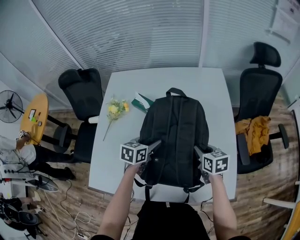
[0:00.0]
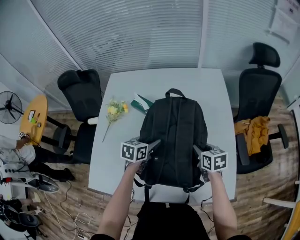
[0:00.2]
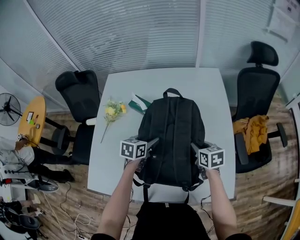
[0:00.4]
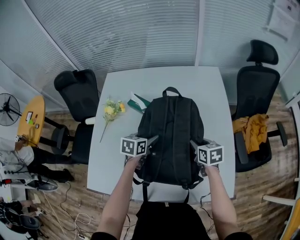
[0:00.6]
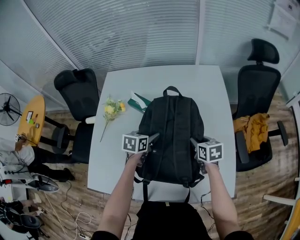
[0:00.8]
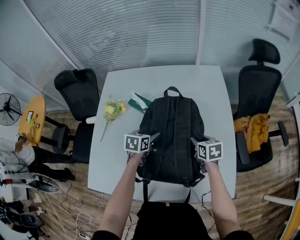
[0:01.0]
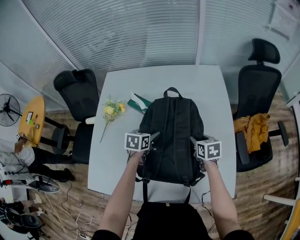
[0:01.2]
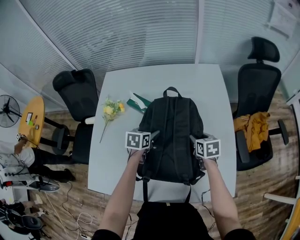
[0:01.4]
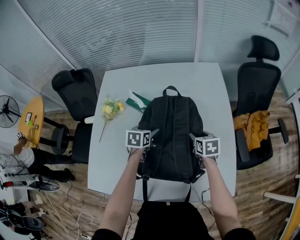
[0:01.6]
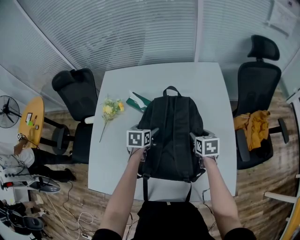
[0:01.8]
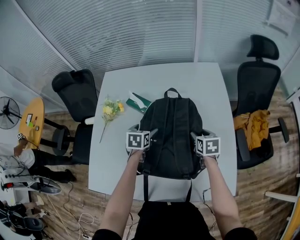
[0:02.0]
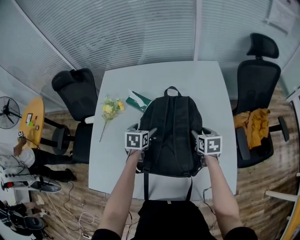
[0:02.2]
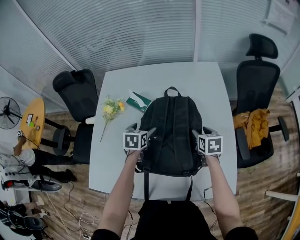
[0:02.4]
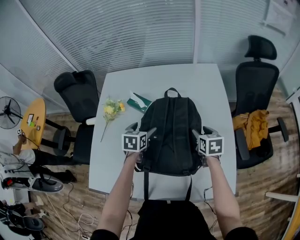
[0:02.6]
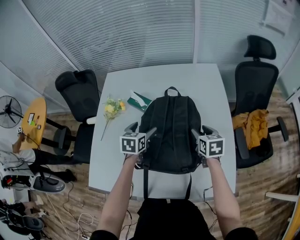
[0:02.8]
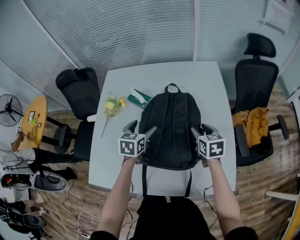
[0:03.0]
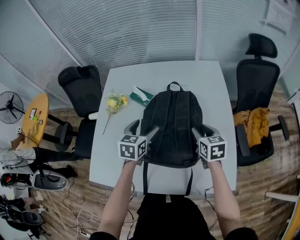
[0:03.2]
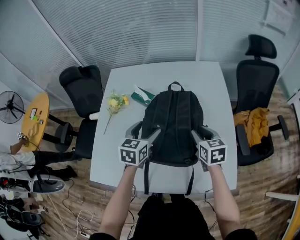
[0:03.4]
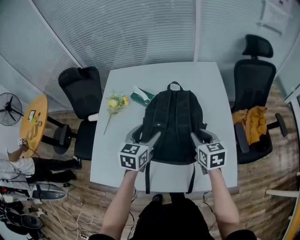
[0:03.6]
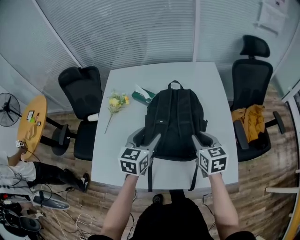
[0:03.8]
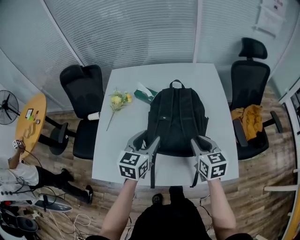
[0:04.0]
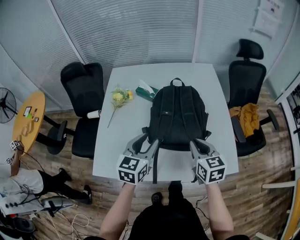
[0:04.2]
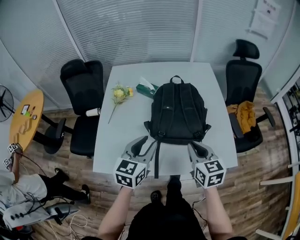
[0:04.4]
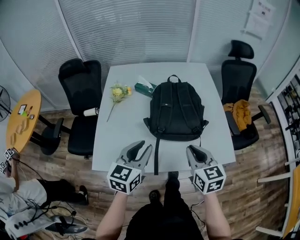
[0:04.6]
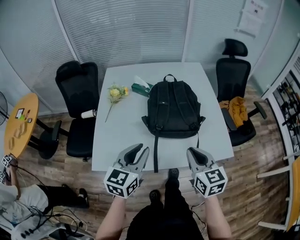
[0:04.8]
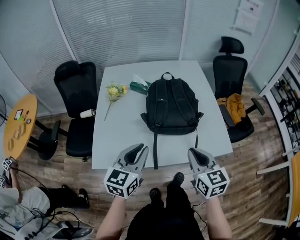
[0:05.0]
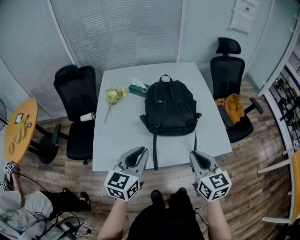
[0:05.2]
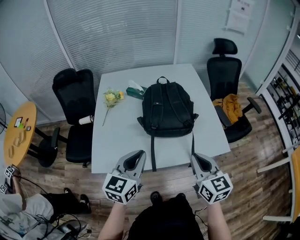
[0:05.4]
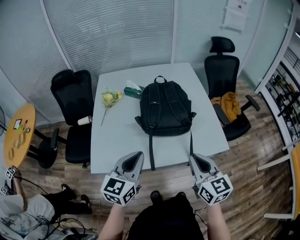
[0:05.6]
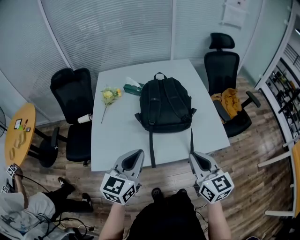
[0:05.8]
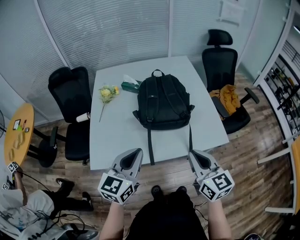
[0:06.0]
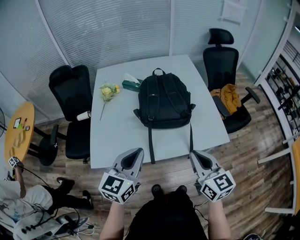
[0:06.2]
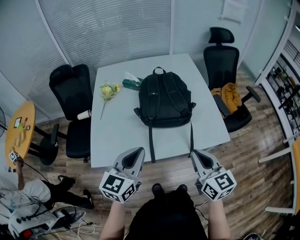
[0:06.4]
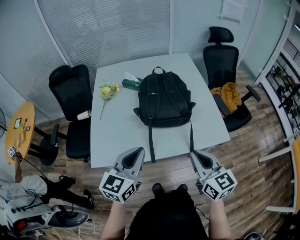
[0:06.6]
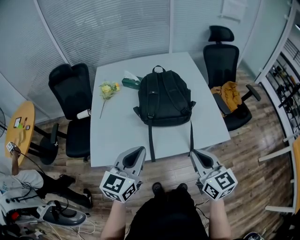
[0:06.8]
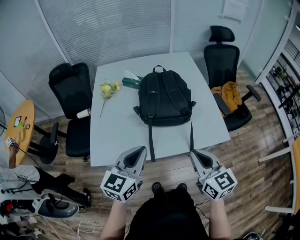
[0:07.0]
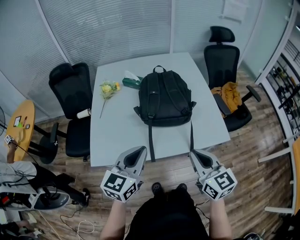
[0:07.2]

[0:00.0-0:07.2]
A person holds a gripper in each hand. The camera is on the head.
0:00.0 to 0:01.4: The left gripper goes about 10 cm forward and downward. Meanwhile the right gripper goes roughly 5 cm forward.
0:01.4 to 0:02.8: Both grippers move upward, about 5 cm.
0:02.8 to 0:04.4: The left gripper shifts about 30 cm backward and upward, changes its angle by some 20 degrees, and closes its fingers, while the right gripper goes some 30 cm backward, to the left and upward, and closes its fingers.
0:04.4 to 0:05.8: Both grippers move backward, roughly 15 cm. The left gripper closes.
0:05.8 to 0:07.2: The grippers make only small movements.

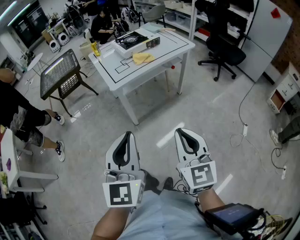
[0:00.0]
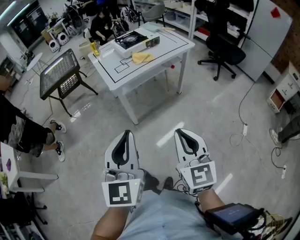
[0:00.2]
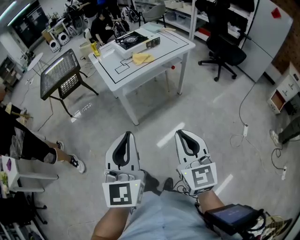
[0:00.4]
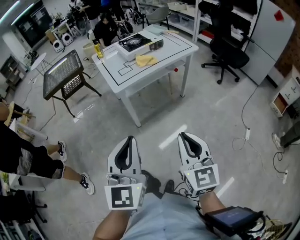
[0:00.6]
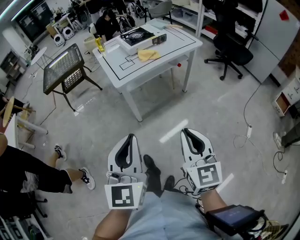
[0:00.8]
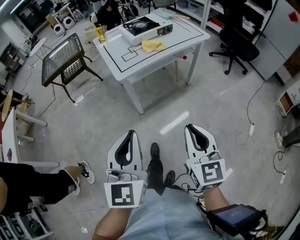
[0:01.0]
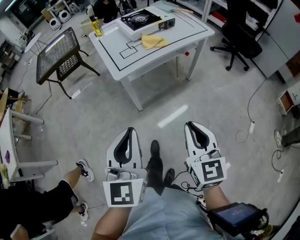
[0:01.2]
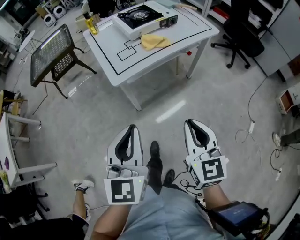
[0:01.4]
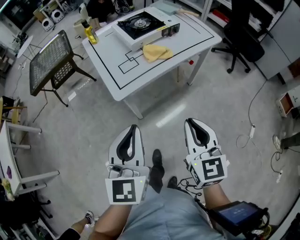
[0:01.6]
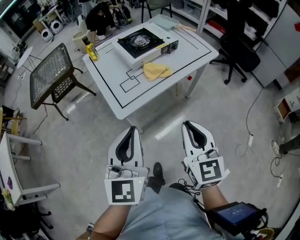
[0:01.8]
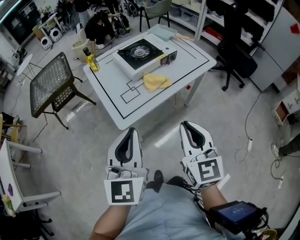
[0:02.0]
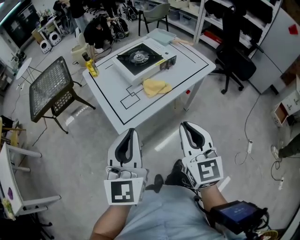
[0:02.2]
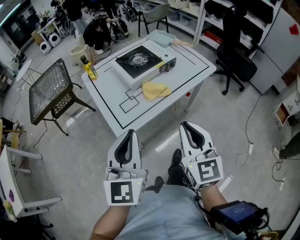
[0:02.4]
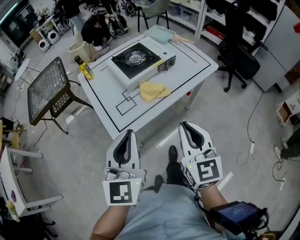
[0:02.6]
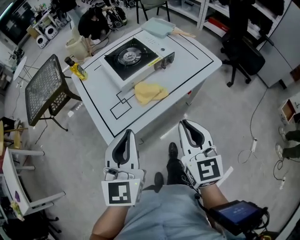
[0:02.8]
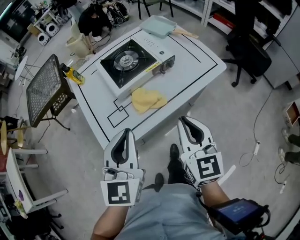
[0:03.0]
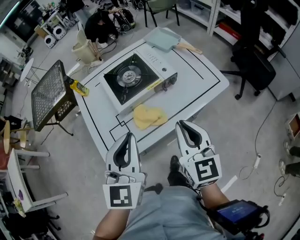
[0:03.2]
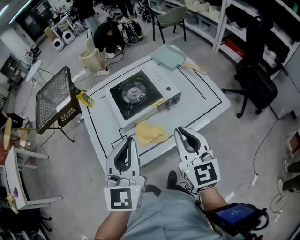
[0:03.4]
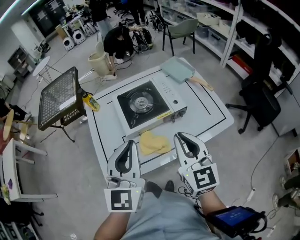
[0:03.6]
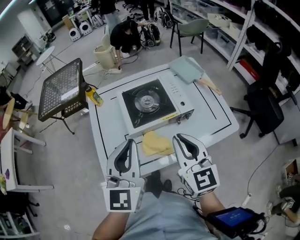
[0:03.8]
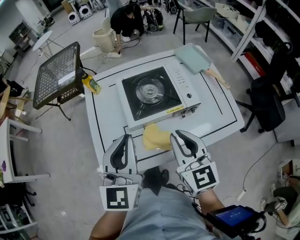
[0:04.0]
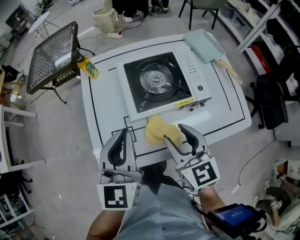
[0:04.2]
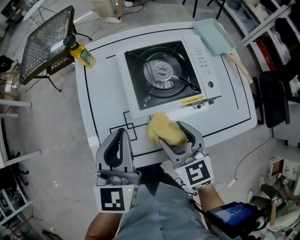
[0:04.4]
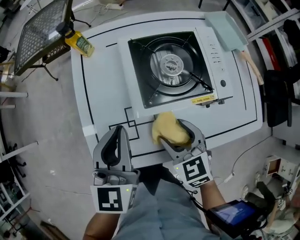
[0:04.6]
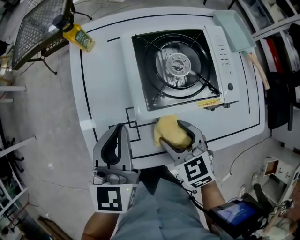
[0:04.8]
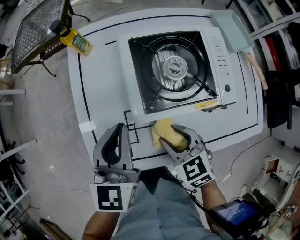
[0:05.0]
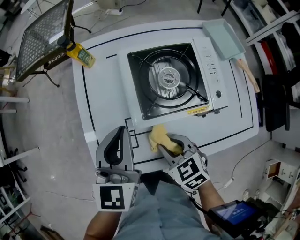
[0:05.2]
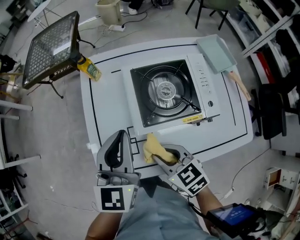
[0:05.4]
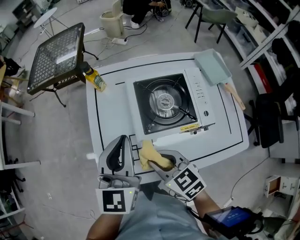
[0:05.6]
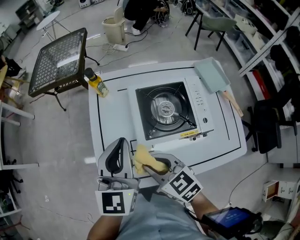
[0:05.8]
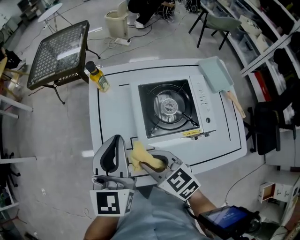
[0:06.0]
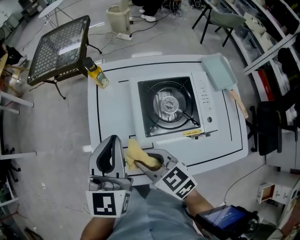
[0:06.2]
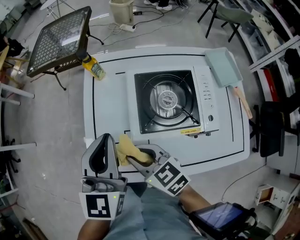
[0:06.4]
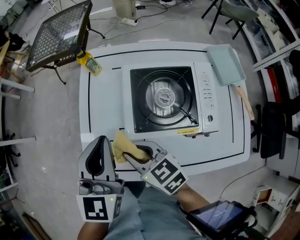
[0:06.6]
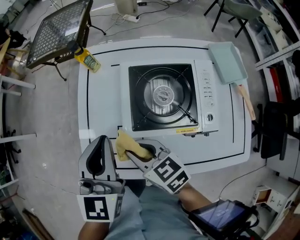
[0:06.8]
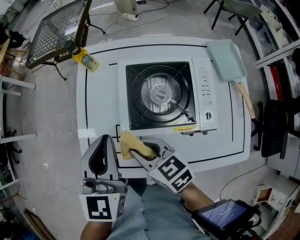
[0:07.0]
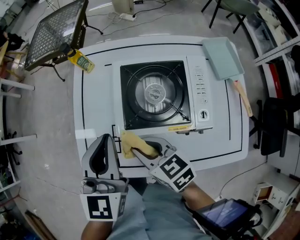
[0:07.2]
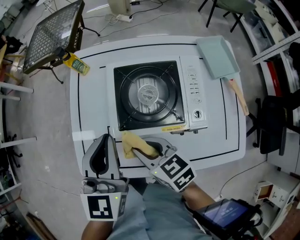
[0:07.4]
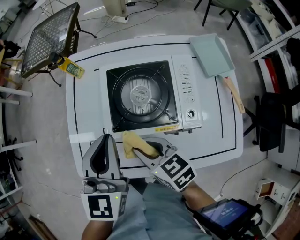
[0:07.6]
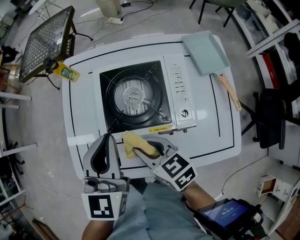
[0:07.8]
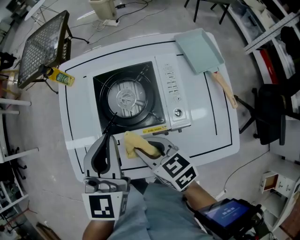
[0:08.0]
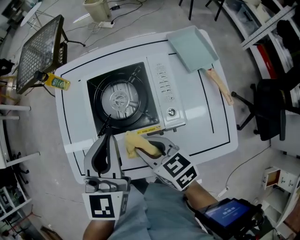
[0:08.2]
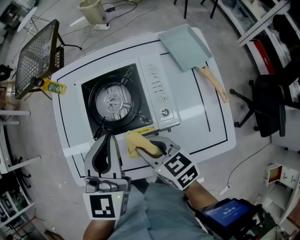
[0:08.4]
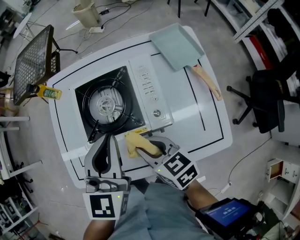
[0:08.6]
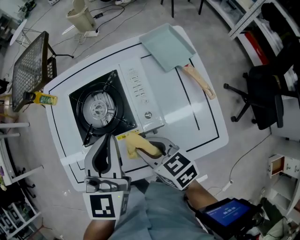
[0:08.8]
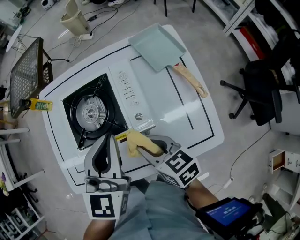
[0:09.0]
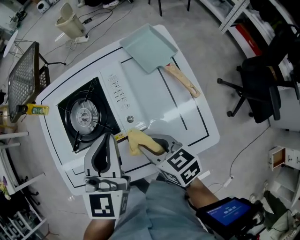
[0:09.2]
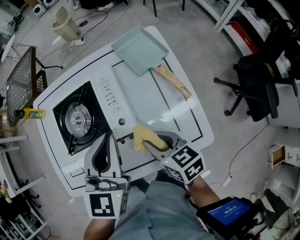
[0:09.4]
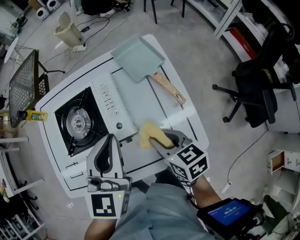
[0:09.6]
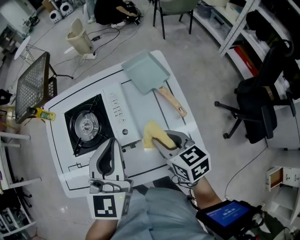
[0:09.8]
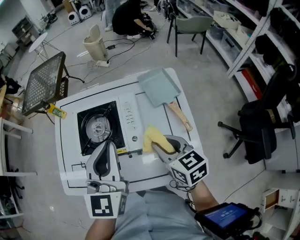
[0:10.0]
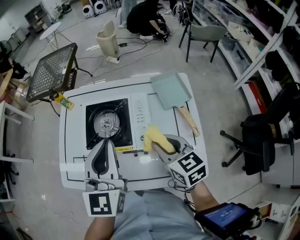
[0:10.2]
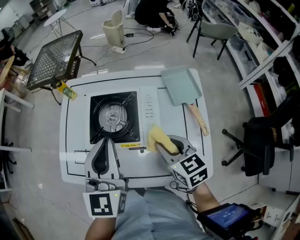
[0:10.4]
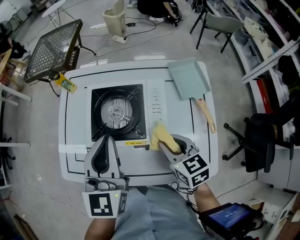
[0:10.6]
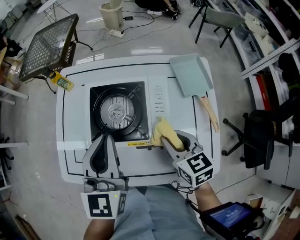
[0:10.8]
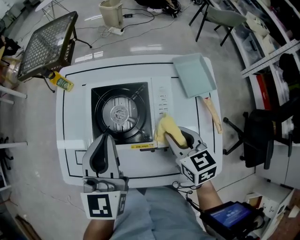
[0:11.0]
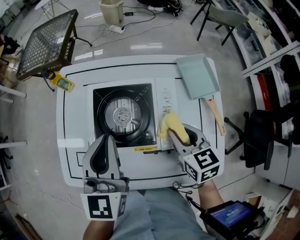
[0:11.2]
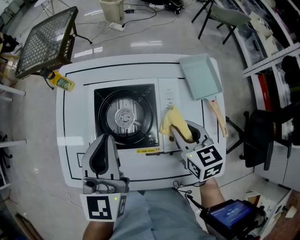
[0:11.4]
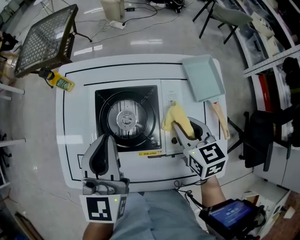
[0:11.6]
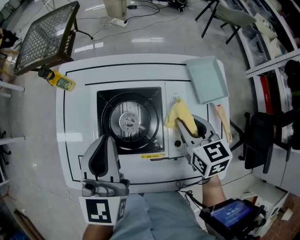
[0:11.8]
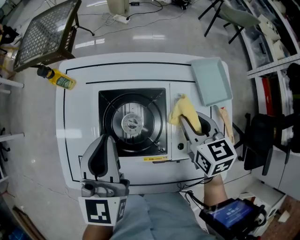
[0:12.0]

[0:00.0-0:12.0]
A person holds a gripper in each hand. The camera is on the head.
0:00.0 to 0:01.6: Both grippers move forward, some 30 cm.
0:01.6 to 0:03.0: Both grippers travel together forward, some 30 cm.
0:03.0 to 0:04.4: The left gripper changes place by about 20 cm, and swivels approximately 20 degrees. Meanwhile the right gripper shifts by roughly 25 cm, rotates approximately 40 degrees, and opens.
0:04.4 to 0:06.0: The left gripper shifts about 10 cm upward and forward. Meanwhile the right gripper goes about 10 cm to the left, travels downward and back again, some 10 cm each way, changes its angle by about 30 degrees, and closes its fingers.
0:06.0 to 0:07.6: The right gripper goes approximately 10 cm to the right. Meanwhile the left gripper travels to the right and backward by roughly 15 cm.
0:07.6 to 0:09.0: Both grippers travel together to the right, about 15 cm.
0:09.0 to 0:10.4: The right gripper goes approximately 10 cm upward and to the right; the left gripper shifts about 10 cm upward and to the left, and turns by some 20 degrees.
0:10.4 to 0:12.0: The left gripper is displaced forward, to the left and downward by about 15 cm; the right gripper travels forward by about 15 cm.

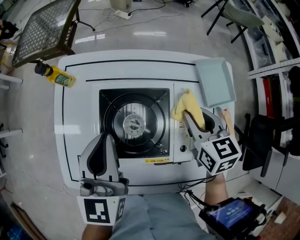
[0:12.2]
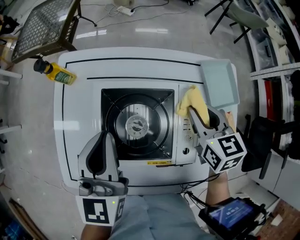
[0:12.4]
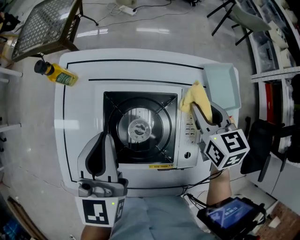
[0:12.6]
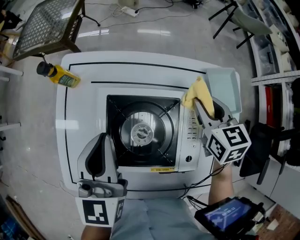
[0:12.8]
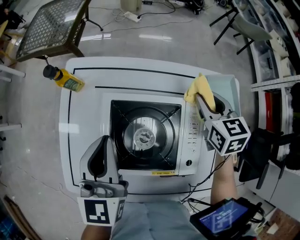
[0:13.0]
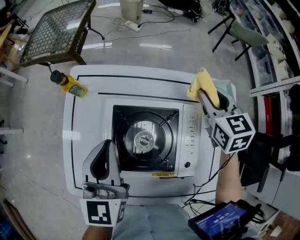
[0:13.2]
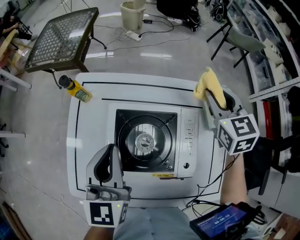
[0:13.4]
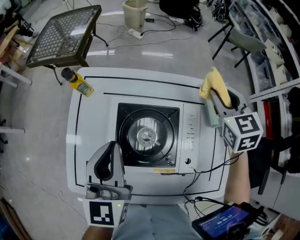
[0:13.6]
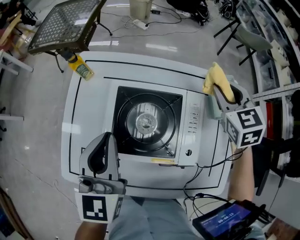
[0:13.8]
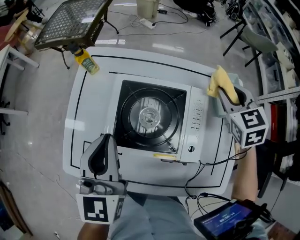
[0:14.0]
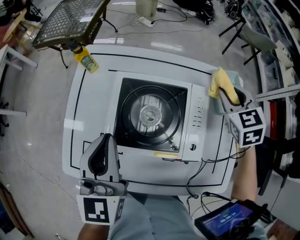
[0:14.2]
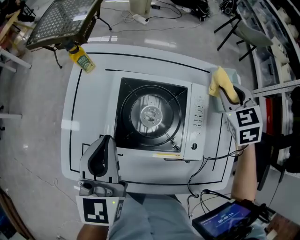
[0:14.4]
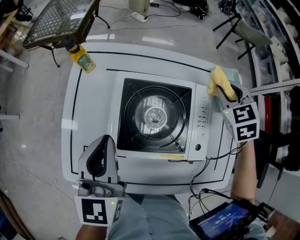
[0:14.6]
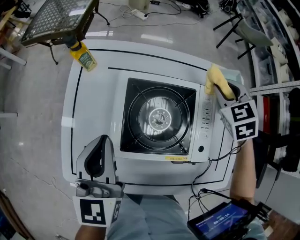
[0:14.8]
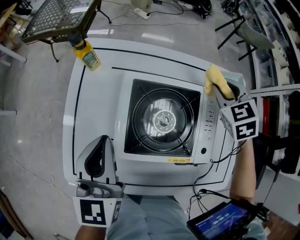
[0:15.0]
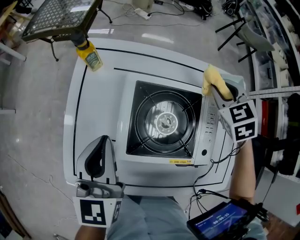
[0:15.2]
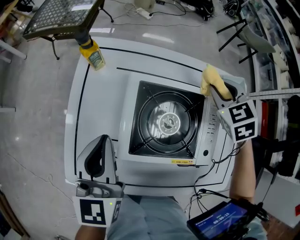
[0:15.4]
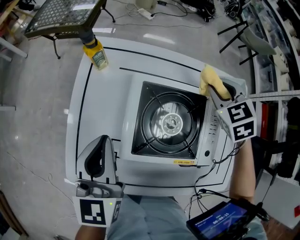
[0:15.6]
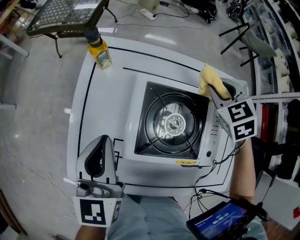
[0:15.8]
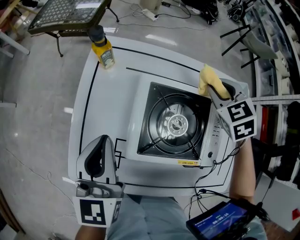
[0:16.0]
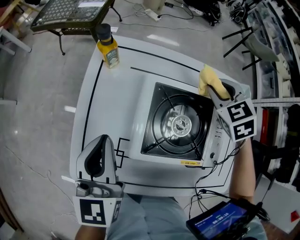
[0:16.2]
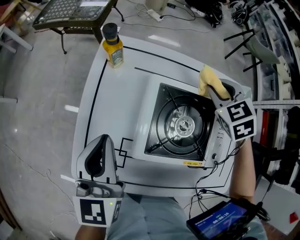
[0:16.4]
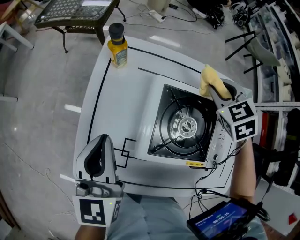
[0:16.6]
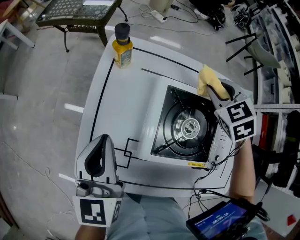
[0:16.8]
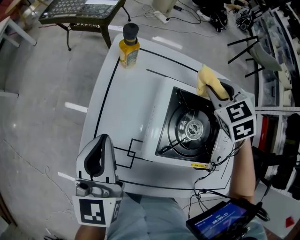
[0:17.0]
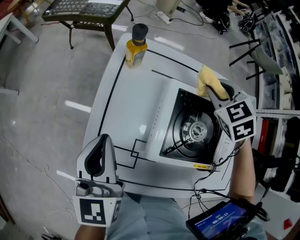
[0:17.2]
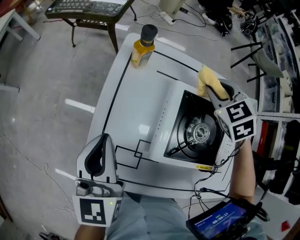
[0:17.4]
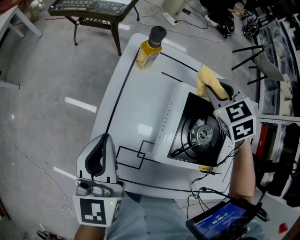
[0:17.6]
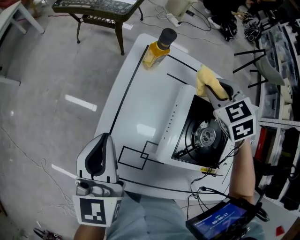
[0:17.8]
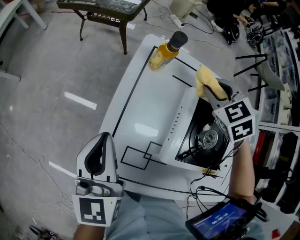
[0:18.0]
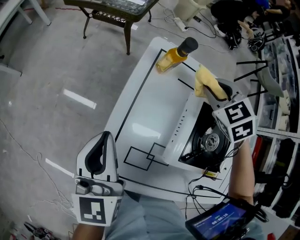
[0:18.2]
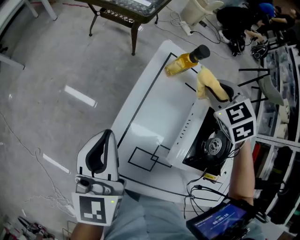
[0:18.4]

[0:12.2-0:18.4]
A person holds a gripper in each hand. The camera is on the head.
0:12.2 to 0:13.8: The right gripper is displaced forward and upward by approximately 10 cm, and turns by about 30 degrees; the left gripper changes place by roughly 5 cm.
0:13.8 to 0:15.4: The left gripper travels to the left by approximately 10 cm; the right gripper heads to the left and downward, covering some 10 cm.
0:15.4 to 0:16.8: Both grippers travel together to the left, approximately 10 cm.
0:16.8 to 0:18.4: Both grippers travel together to the left, about 15 cm.
